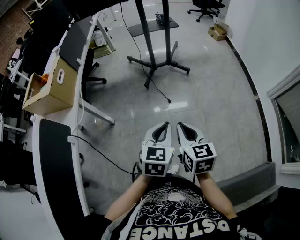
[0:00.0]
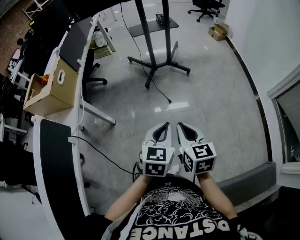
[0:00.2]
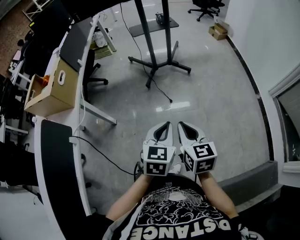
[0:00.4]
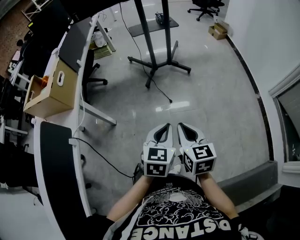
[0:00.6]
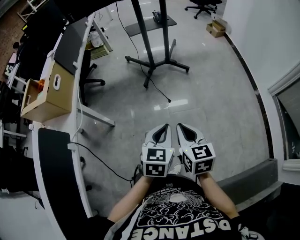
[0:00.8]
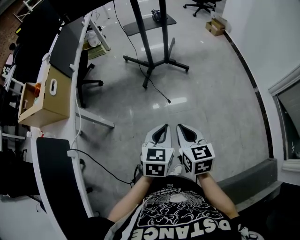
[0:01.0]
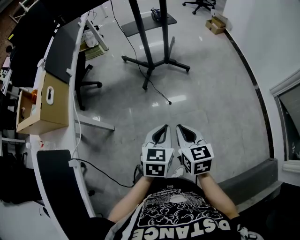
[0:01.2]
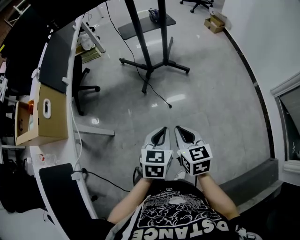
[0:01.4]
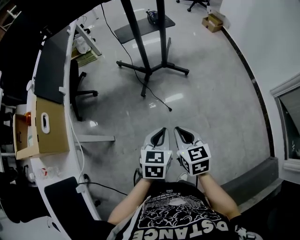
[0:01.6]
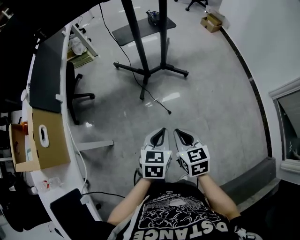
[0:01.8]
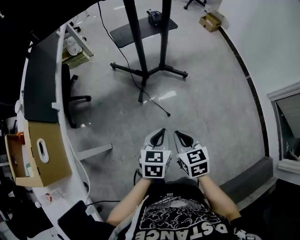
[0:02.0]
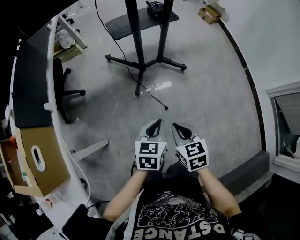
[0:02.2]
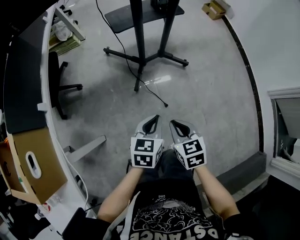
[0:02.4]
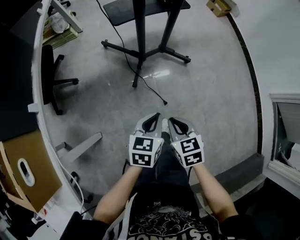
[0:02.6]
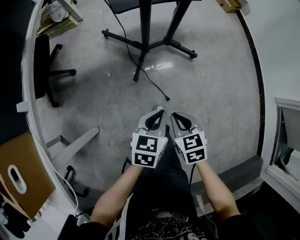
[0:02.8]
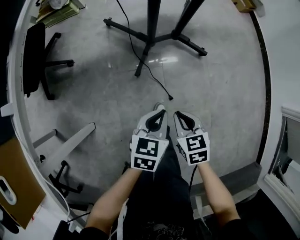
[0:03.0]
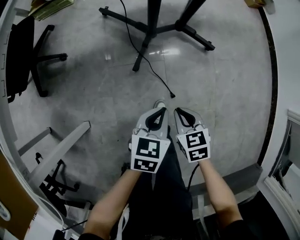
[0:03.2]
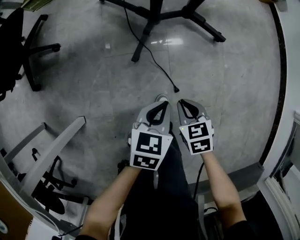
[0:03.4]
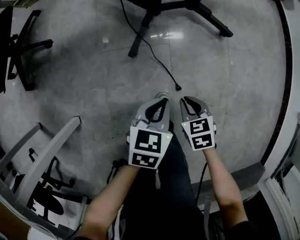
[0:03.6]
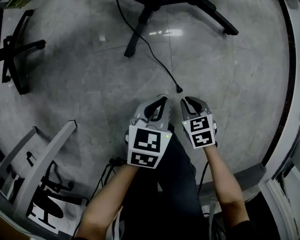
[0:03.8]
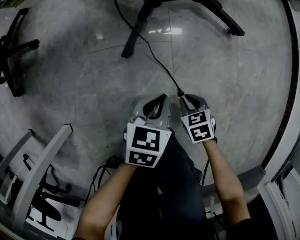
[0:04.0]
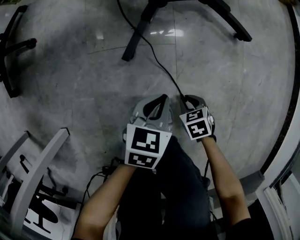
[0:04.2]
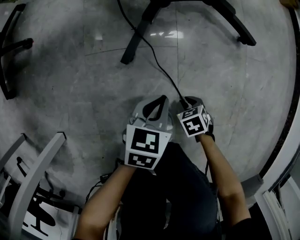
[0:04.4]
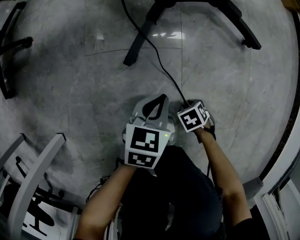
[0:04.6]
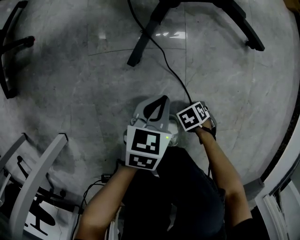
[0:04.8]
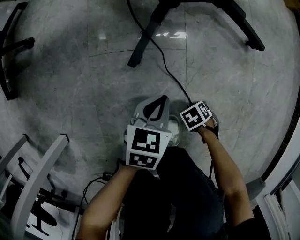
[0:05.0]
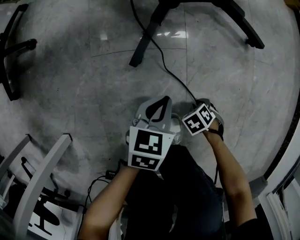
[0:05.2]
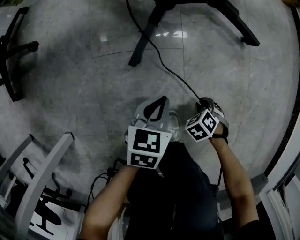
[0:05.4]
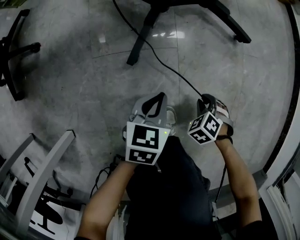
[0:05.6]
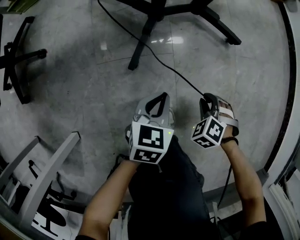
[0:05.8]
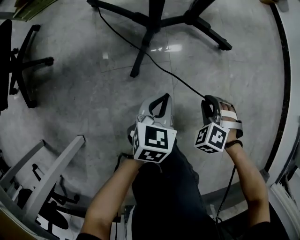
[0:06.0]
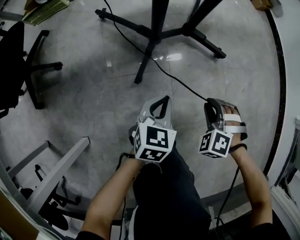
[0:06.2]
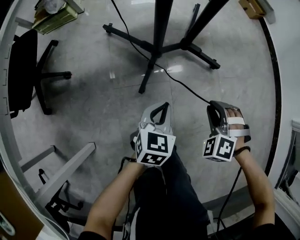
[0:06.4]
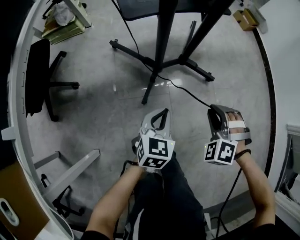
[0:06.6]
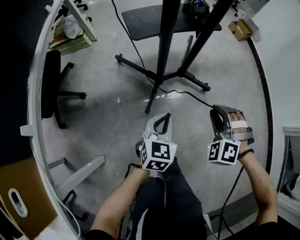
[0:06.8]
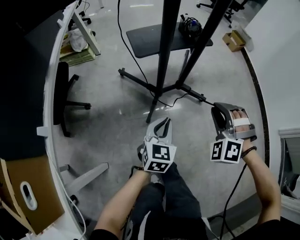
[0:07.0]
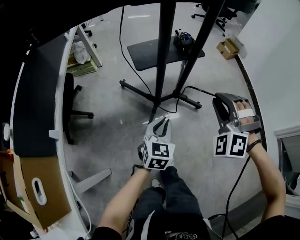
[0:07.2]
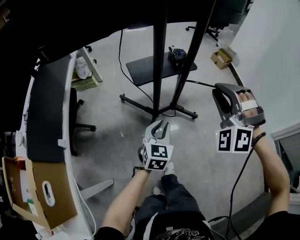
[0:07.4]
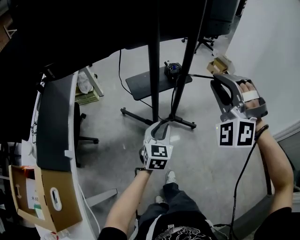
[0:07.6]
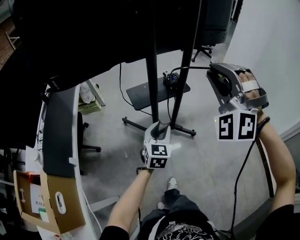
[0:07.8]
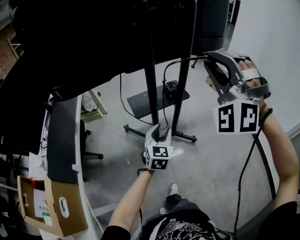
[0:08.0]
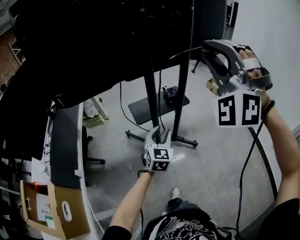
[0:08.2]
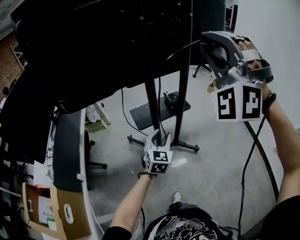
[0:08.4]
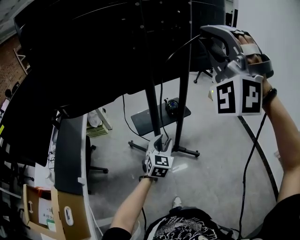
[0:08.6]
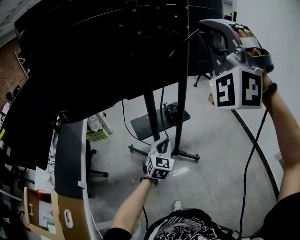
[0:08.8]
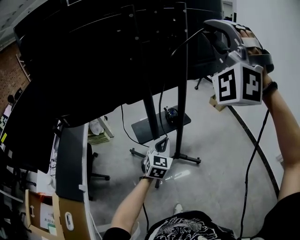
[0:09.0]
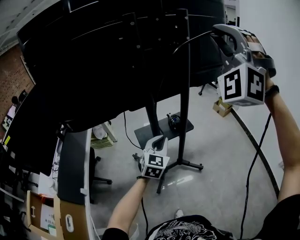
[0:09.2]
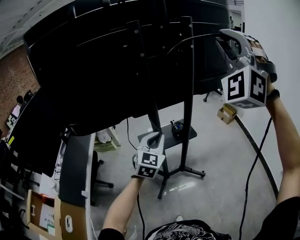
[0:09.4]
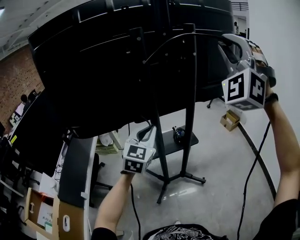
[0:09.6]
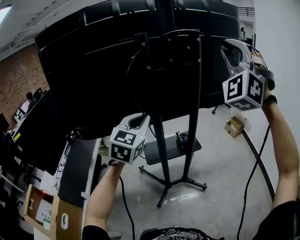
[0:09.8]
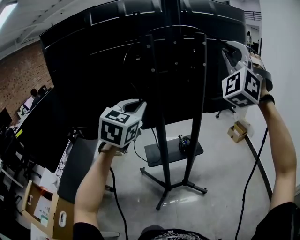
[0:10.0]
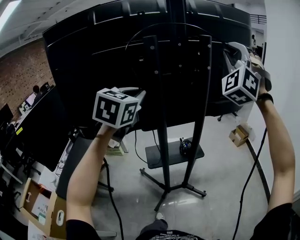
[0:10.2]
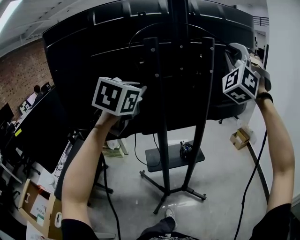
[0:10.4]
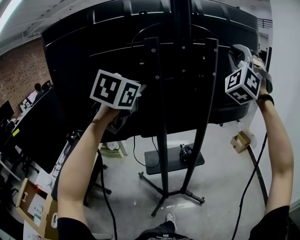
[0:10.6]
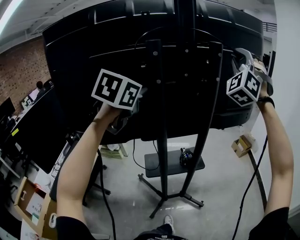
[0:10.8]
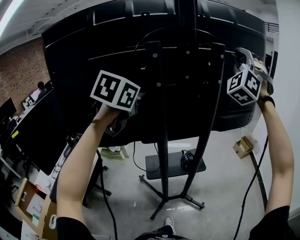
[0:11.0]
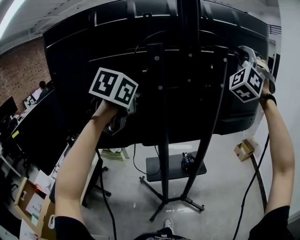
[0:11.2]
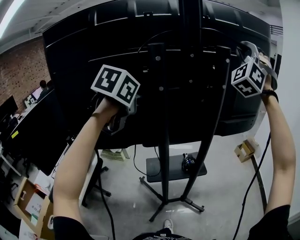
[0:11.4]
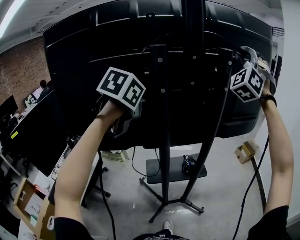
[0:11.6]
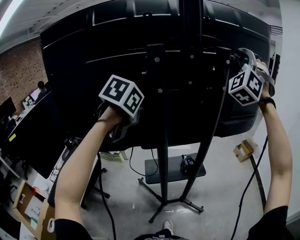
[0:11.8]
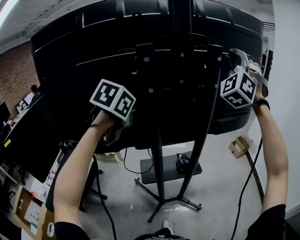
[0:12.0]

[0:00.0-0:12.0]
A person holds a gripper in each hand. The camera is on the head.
0:00.0 to 0:01.6: Both grippers travel together forward and downward, approximately 20 cm.
0:01.6 to 0:03.0: The grippers both shift downward and forward by some 35 cm. The right gripper turns by about 20 degrees.
0:03.0 to 0:04.4: The two grippers go approximately 40 cm downward. The right gripper changes its angle by approximately 30 degrees.
0:04.4 to 0:06.0: The right gripper goes some 25 cm upward, and rolls counterclockwise, seen from behind, by approximately 40 degrees; the left gripper travels upward by about 15 cm.
0:06.0 to 0:07.6: The right gripper shifts roughly 80 cm upward, and points its fingers roughly 50 degrees further upward. The left gripper shifts some 50 cm upward, turns by about 30 degrees, and opens its fingers.
0:07.6 to 0:09.0: The left gripper shifts approximately 15 cm upward and forward, and closes. The right gripper goes approximately 30 cm upward, and changes its angle by approximately 30 degrees.
0:09.0 to 0:10.4: The right gripper goes approximately 20 cm forward. The left gripper travels upward by roughly 35 cm.
0:10.4 to 0:12.0: The right gripper heads forward, covering about 10 cm. Meanwhile the left gripper shifts some 10 cm downward and forward, and turns by about 20 degrees.

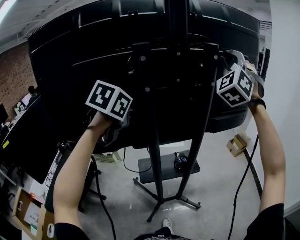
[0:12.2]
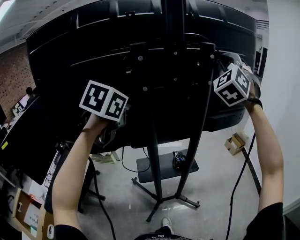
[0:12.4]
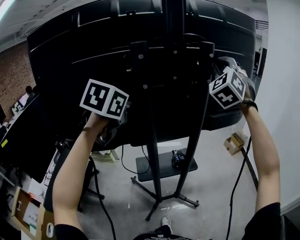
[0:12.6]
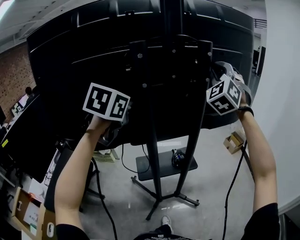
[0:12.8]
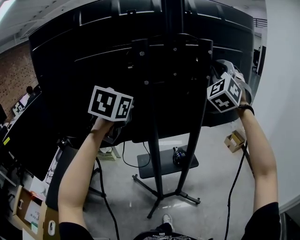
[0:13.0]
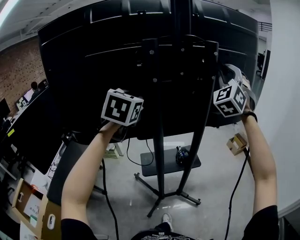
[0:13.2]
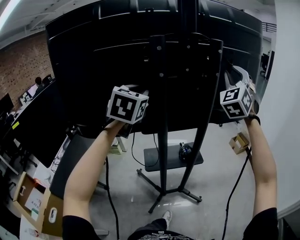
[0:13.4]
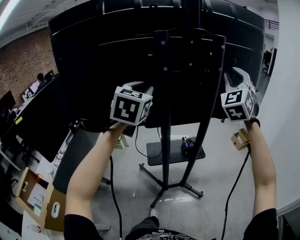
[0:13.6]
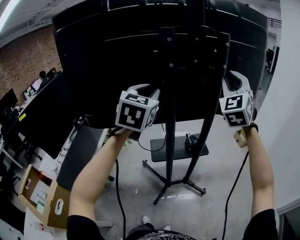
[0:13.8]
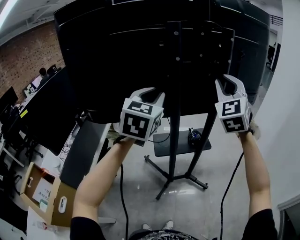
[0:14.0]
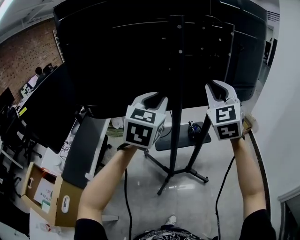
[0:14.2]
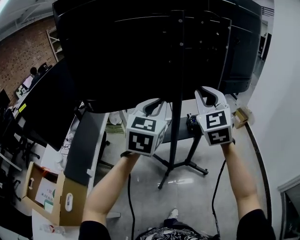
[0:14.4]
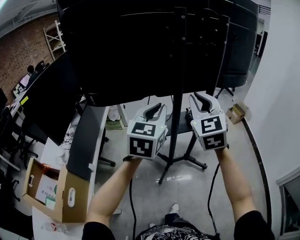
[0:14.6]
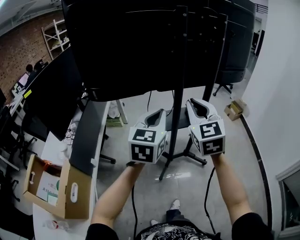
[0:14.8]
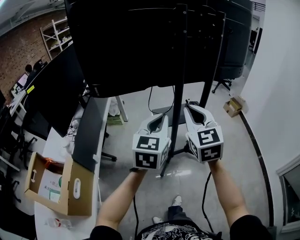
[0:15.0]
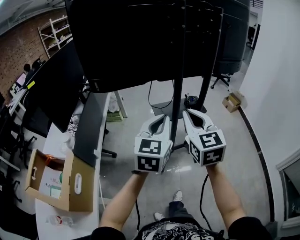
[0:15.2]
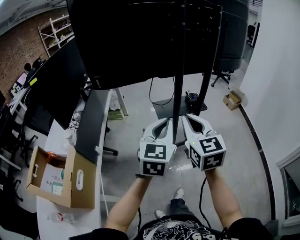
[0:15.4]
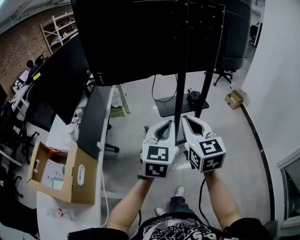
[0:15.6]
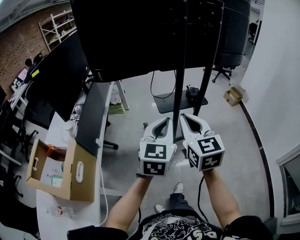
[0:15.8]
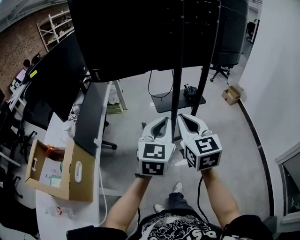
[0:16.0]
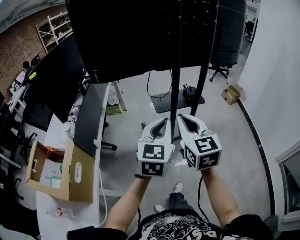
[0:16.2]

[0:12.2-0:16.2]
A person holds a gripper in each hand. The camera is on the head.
0:12.2 to 0:13.6: The left gripper shifts roughly 5 cm backward, and swivels approximately 30 degrees. Meanwhile the right gripper shifts some 10 cm downward and backward.
0:13.6 to 0:14.8: The right gripper moves backward, to the left and downward, some 40 cm, and turns by about 40 degrees. Meanwhile the left gripper heads backward and downward, covering approximately 25 cm, rotates about 20 degrees, and closes.
0:14.8 to 0:16.2: Both grippers move backward and downward, roughly 15 cm.

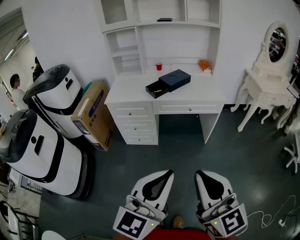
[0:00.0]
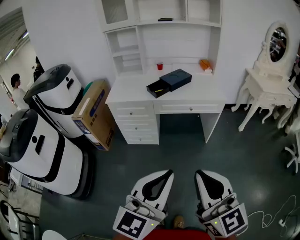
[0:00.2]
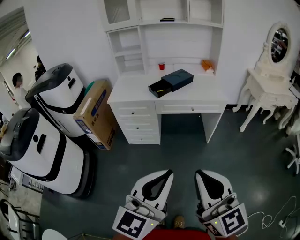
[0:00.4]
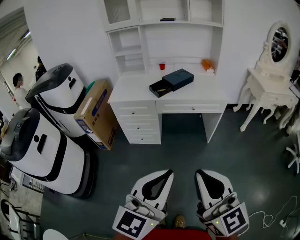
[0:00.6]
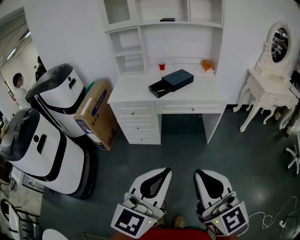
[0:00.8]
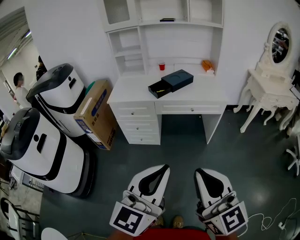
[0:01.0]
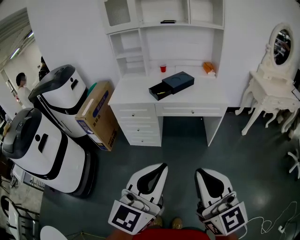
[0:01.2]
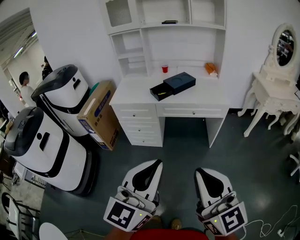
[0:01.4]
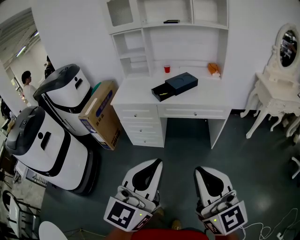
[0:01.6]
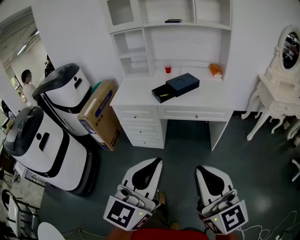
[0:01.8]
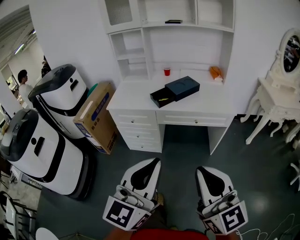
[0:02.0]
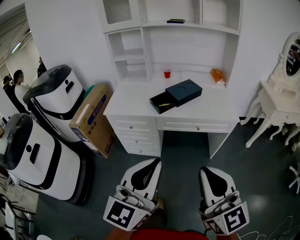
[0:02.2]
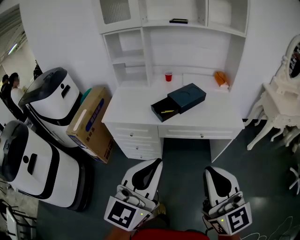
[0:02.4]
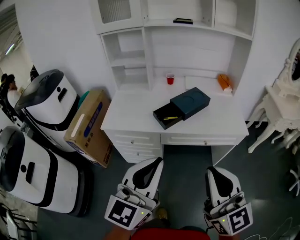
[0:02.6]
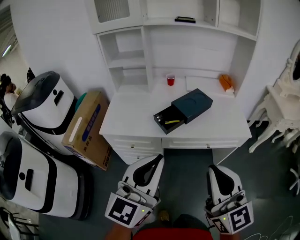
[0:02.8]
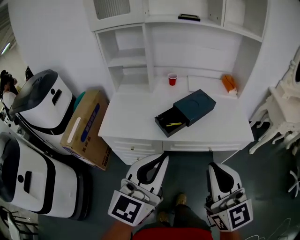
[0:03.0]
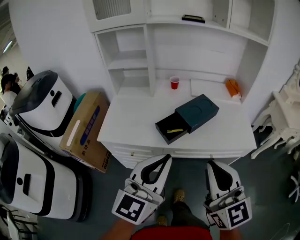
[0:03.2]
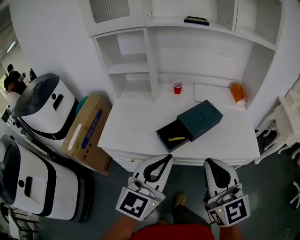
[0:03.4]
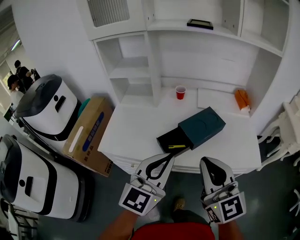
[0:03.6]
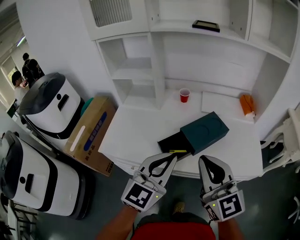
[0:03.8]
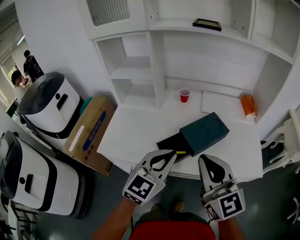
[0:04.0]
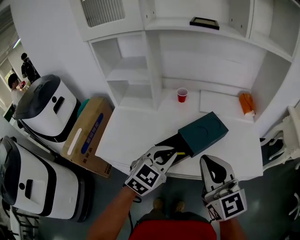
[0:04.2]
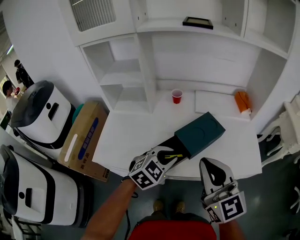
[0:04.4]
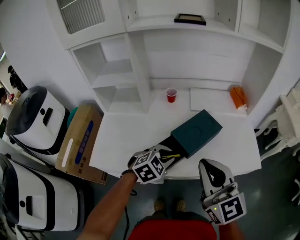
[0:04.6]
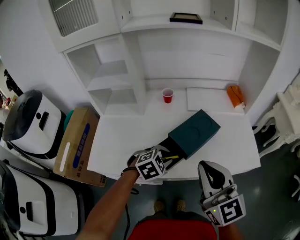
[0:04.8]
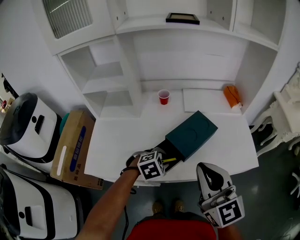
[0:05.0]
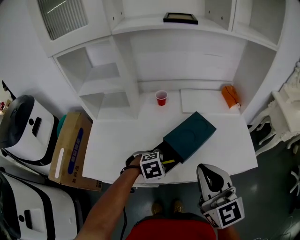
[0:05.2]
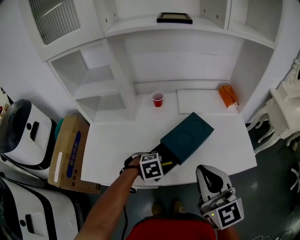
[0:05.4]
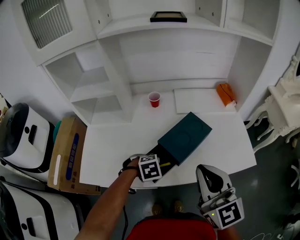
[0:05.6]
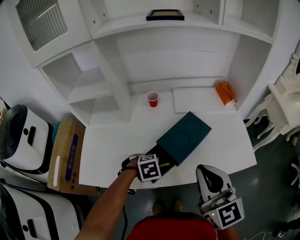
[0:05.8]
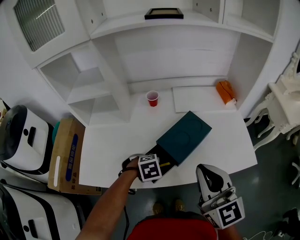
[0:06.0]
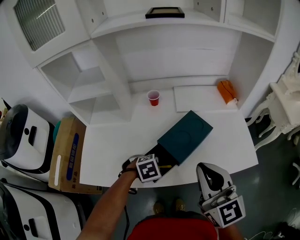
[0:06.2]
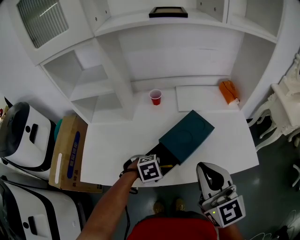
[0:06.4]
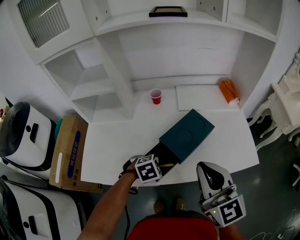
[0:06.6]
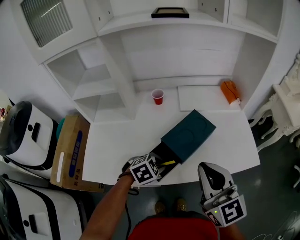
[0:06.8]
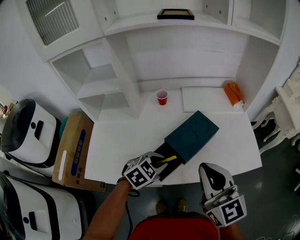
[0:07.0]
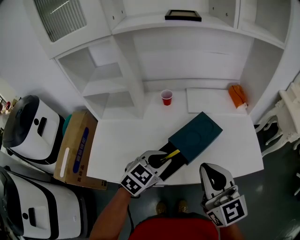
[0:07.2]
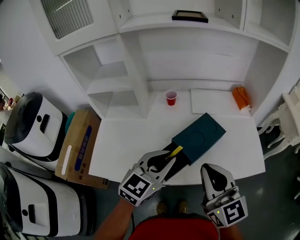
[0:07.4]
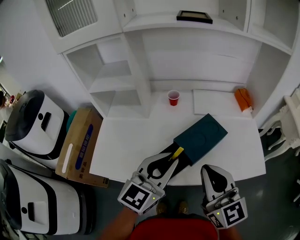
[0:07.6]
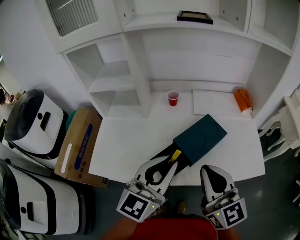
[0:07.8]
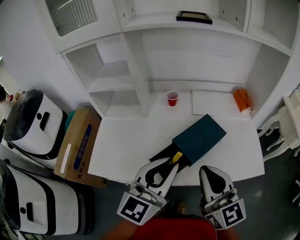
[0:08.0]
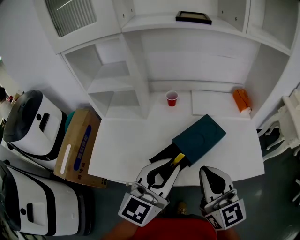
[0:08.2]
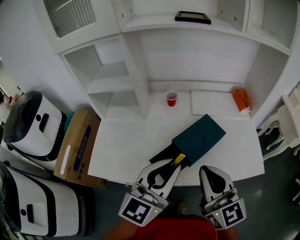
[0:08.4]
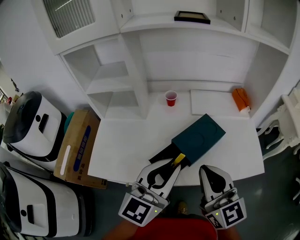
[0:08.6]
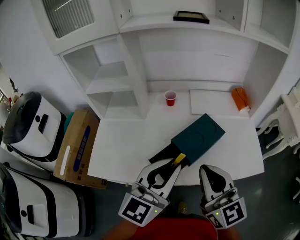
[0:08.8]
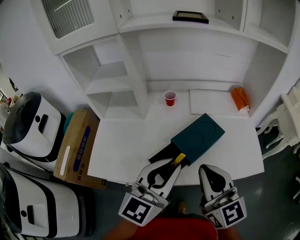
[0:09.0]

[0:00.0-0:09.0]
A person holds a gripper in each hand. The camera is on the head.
0:00.0 to 0:01.6: The left gripper changes place by some 5 cm. The right gripper moves roughly 5 cm.
0:01.6 to 0:03.0: Both grippers move forward, some 35 cm.
0:03.0 to 0:04.4: The right gripper is displaced forward by approximately 20 cm, while the left gripper is displaced forward and downward by roughly 30 cm, angles its fingers downward, by some 40 degrees, and opens up.
0:04.4 to 0:06.0: The left gripper heads downward, covering about 15 cm, and tips its fingers downward by roughly 40 degrees; the right gripper shifts by some 5 cm.
0:06.0 to 0:07.6: The left gripper is displaced upward by some 25 cm, and points its fingers some 70 degrees further upward.
0:07.6 to 0:09.0: The grippers move only a little.
